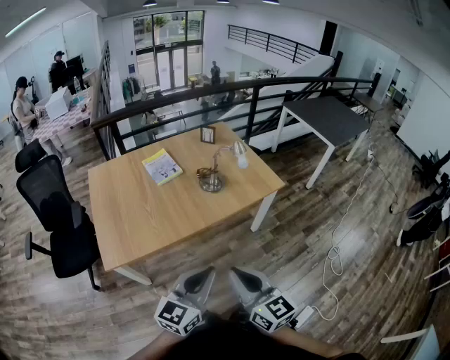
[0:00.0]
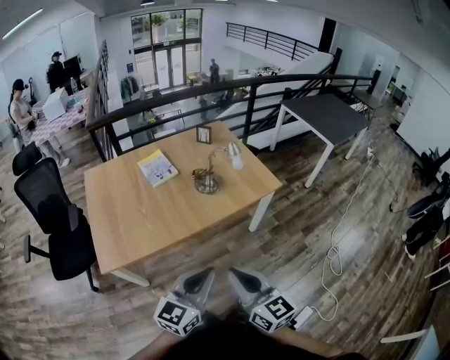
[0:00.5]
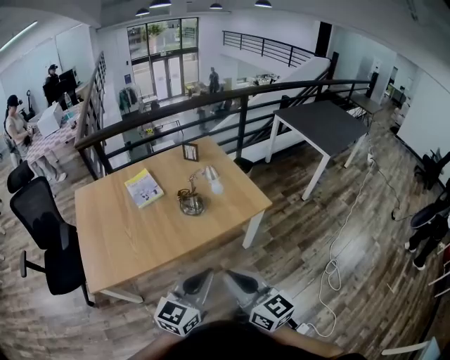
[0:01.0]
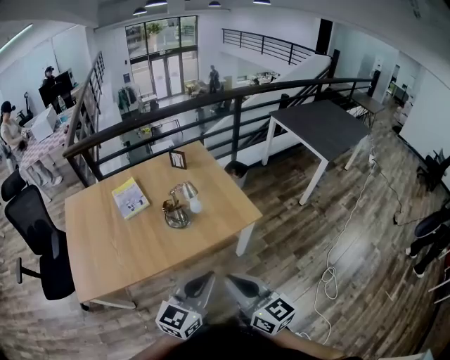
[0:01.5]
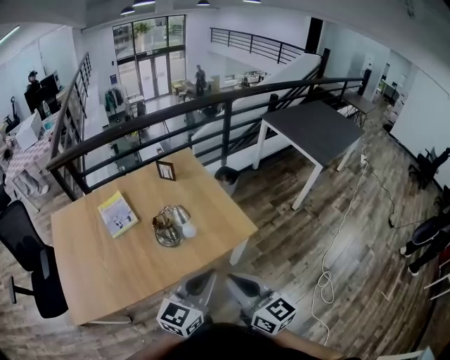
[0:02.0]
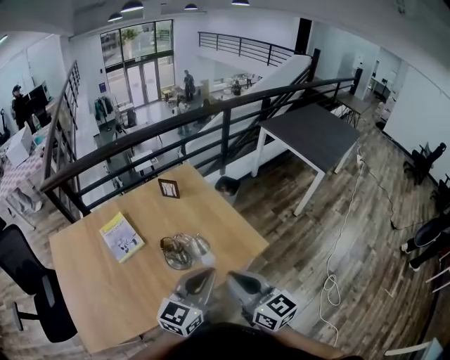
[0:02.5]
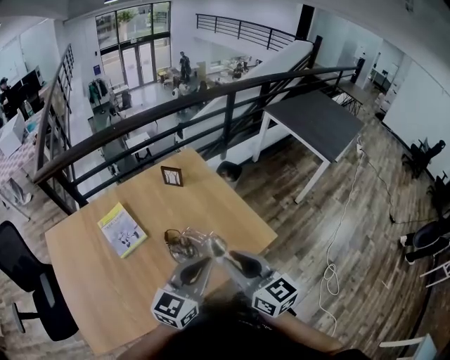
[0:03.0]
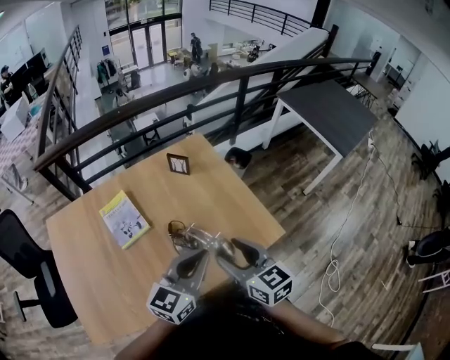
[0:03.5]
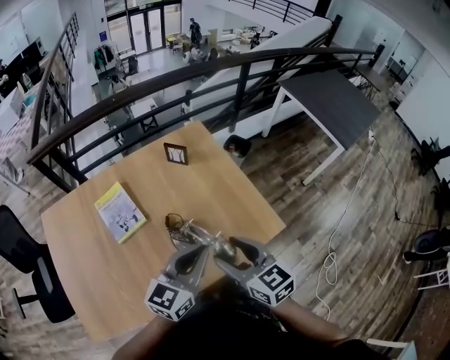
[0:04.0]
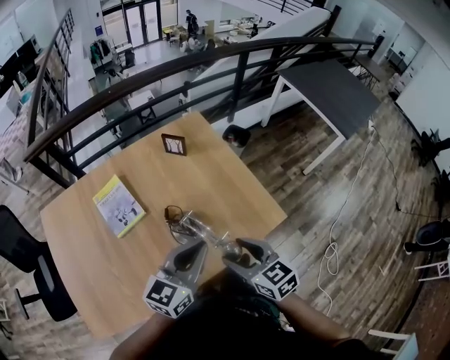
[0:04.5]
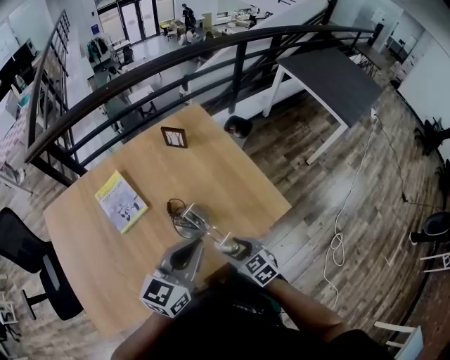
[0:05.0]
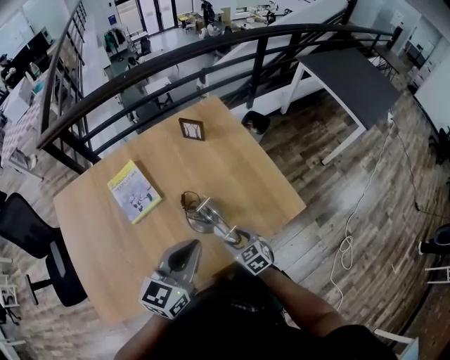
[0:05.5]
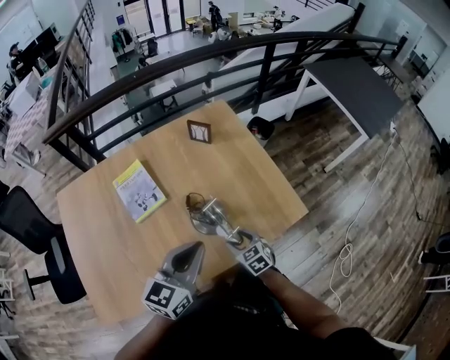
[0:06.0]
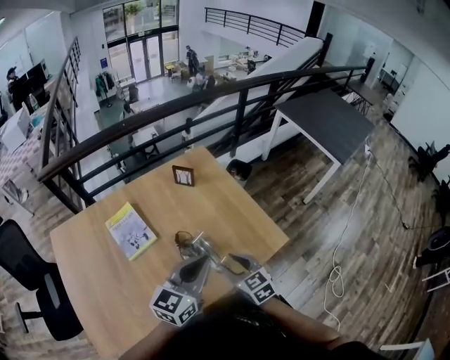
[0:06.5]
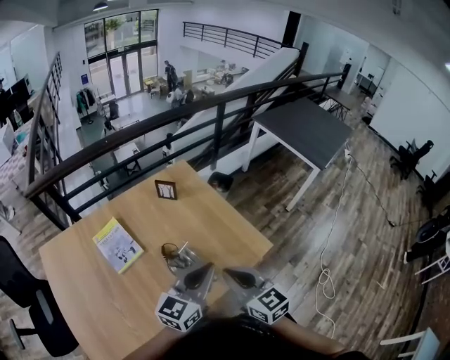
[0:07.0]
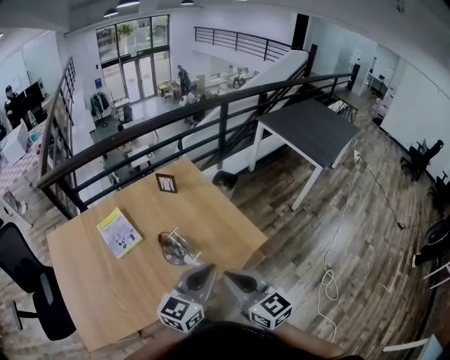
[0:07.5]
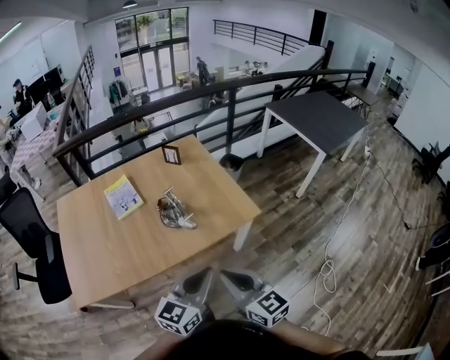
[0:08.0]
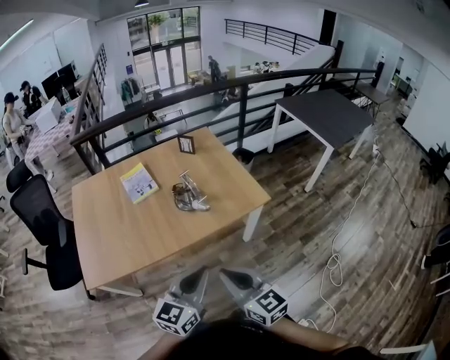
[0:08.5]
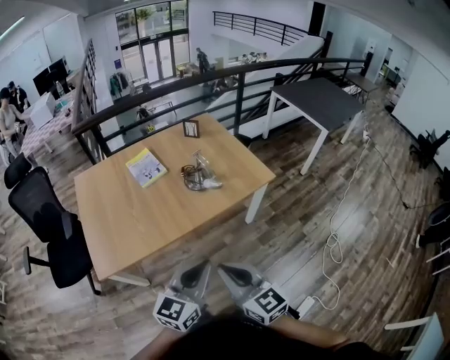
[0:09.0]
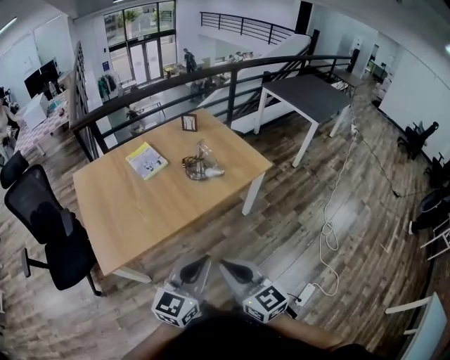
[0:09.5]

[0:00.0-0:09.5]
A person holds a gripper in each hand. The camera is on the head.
0:00.0 to 0:02.0: Both grippers move forward and to the right, about 35 cm.
0:02.0 to 0:04.0: Both grippers move forward and to the left, roughly 25 cm. The right gripper changes its angle by some 20 degrees, and opens up.
0:04.0 to 0:05.5: The left gripper shifts roughly 5 cm to the left; the right gripper is displaced downward by about 30 cm, and changes its angle by about 20 degrees.
0:05.5 to 0:07.5: The right gripper heads upward, covering some 30 cm, points its fingers some 40 degrees further upward, and closes its fingers. Meanwhile the left gripper heads to the right and backward, covering some 15 cm.
0:07.5 to 0:09.5: Both grippers are carried backward and to the left, roughly 40 cm.

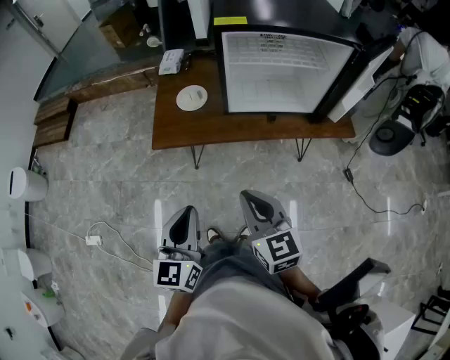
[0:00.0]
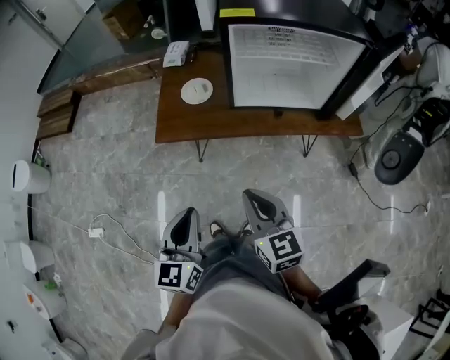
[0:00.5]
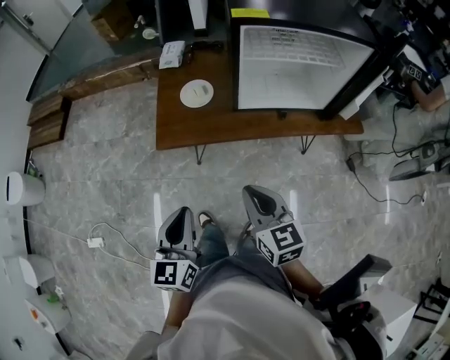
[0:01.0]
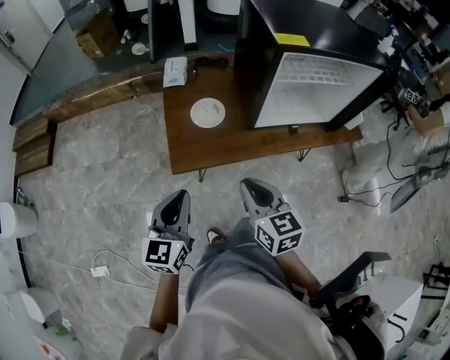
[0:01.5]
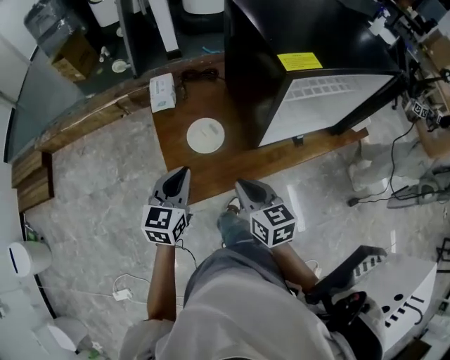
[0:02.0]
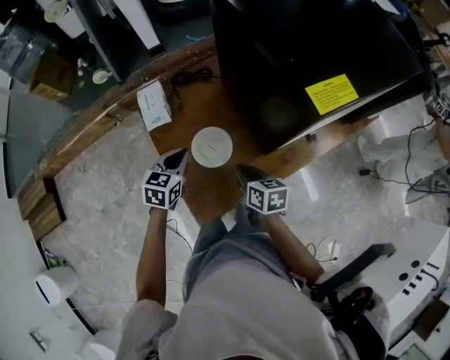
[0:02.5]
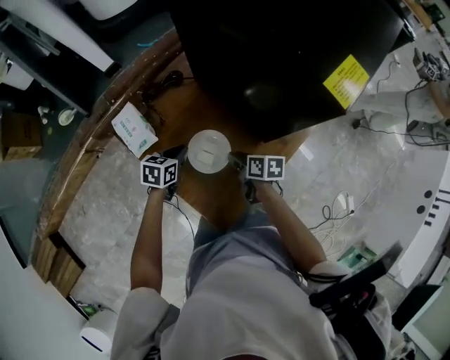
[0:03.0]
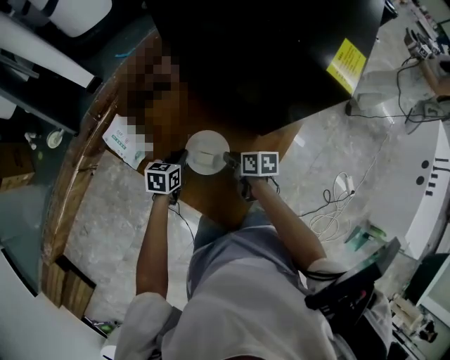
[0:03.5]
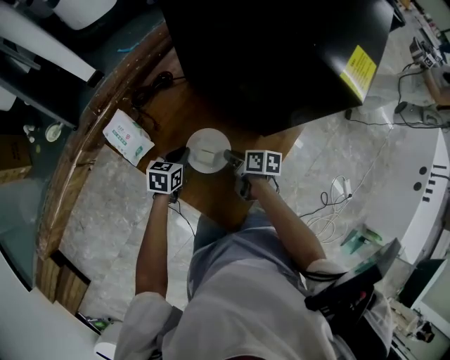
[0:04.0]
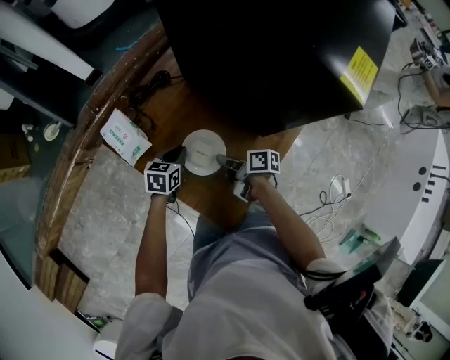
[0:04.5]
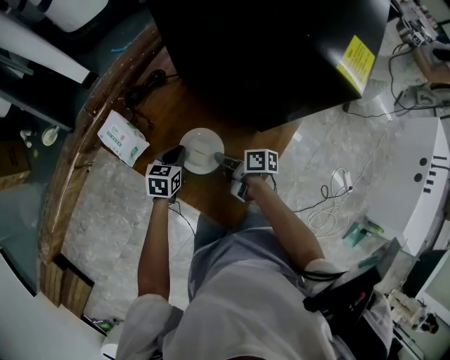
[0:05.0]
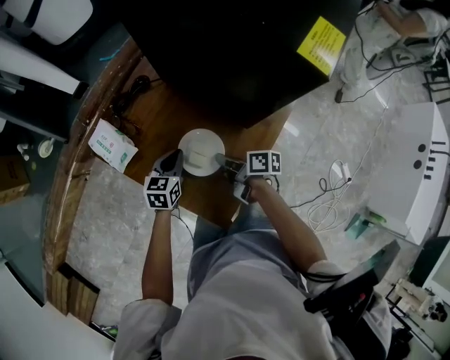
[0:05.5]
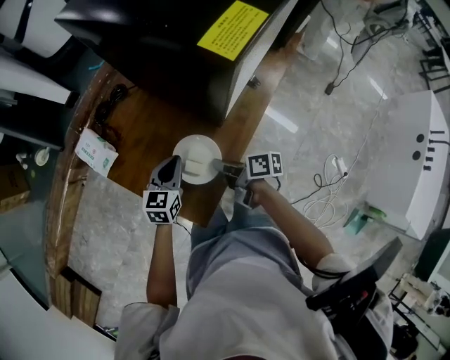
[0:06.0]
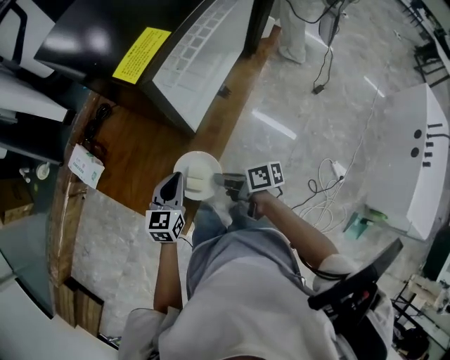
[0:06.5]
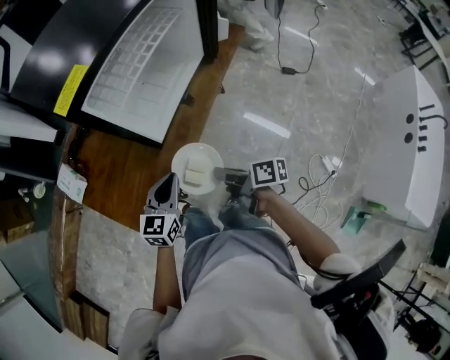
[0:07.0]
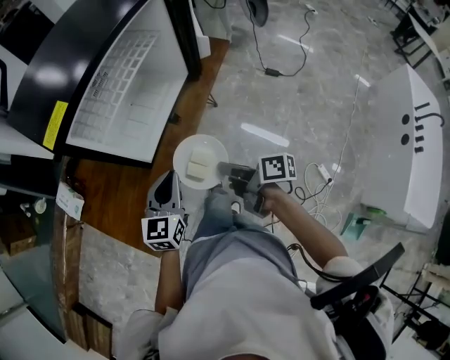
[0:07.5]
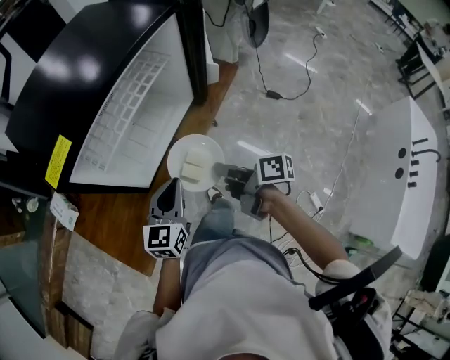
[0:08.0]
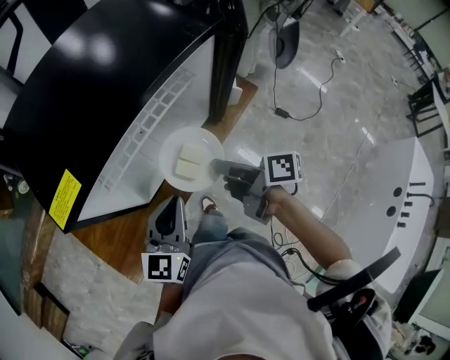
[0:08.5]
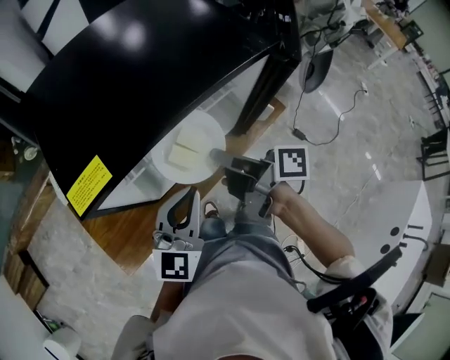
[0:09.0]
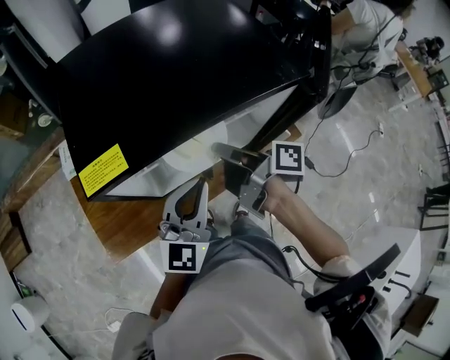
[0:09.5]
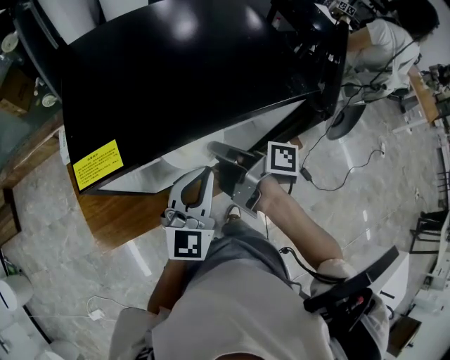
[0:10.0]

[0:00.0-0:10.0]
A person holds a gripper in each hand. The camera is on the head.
0:00.0 to 0:02.0: Both grippers are carried forward and to the left, about 70 cm. The left gripper turns by some 30 degrees; the right gripper swivels roughly 20 degrees.
0:02.0 to 0:04.0: The pair of grippers is taken roughly 50 cm. The left gripper swivels about 50 degrees; the right gripper twists roughly 60 degrees clockwise, seen from behind.
0:04.0 to 0:06.0: The grippers both shift to the right and backward by some 25 cm. The right gripper changes its angle by some 20 degrees.
0:06.0 to 0:08.0: The pair of grippers is taken to the right, about 60 cm.
0:08.0 to 0:10.0: The right gripper ends up roughly 40 cm from where it was, and turns by some 30 degrees, while the left gripper ends up some 35 cm from where it was, and swivels some 40 degrees.

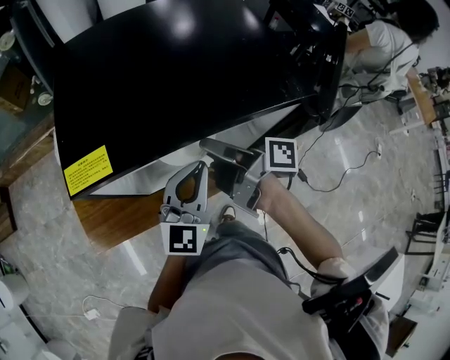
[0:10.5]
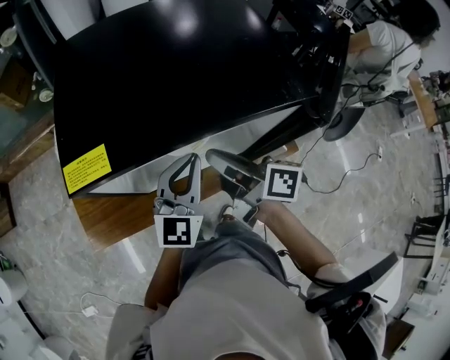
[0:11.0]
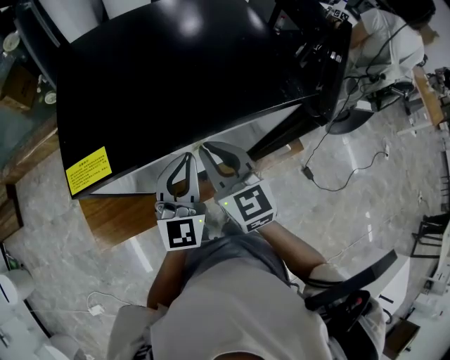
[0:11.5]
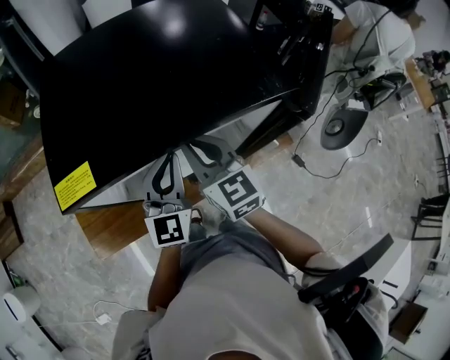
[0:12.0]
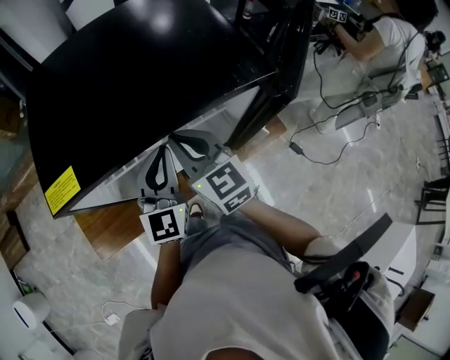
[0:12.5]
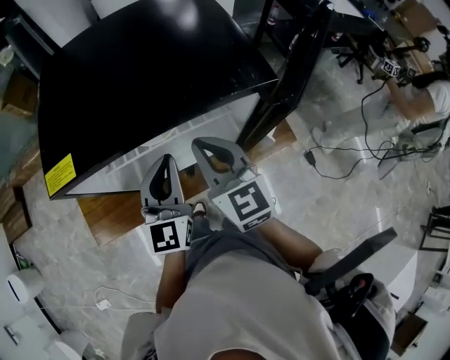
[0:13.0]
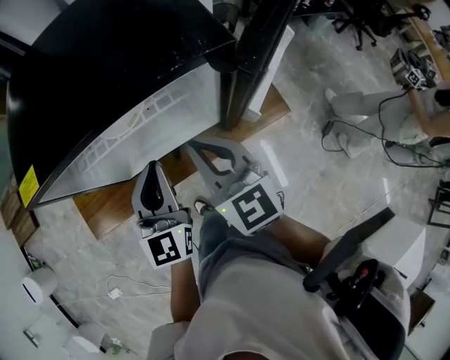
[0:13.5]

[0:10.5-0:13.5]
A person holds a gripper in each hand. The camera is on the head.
0:10.5 to 0:12.0: The right gripper twists approximately 80 degrees counterclockwise, seen from behind, and closes its fingers. Meanwhile the left gripper heads forward, covering roughly 5 cm.
0:12.0 to 0:13.5: The right gripper goes about 15 cm to the right and backward; the left gripper moves backward and to the right, roughly 10 cm.

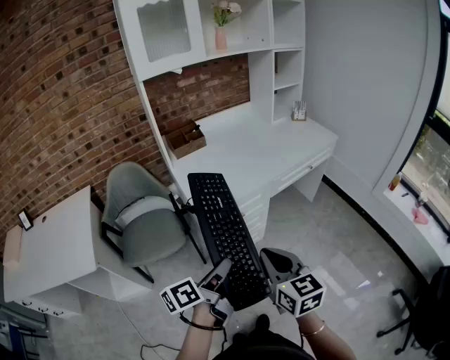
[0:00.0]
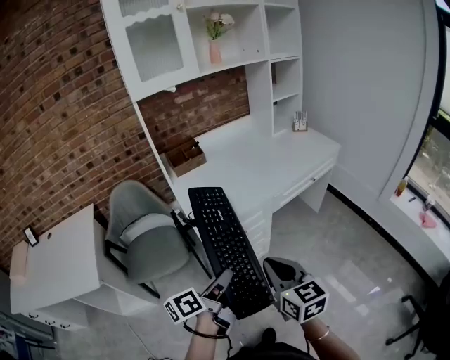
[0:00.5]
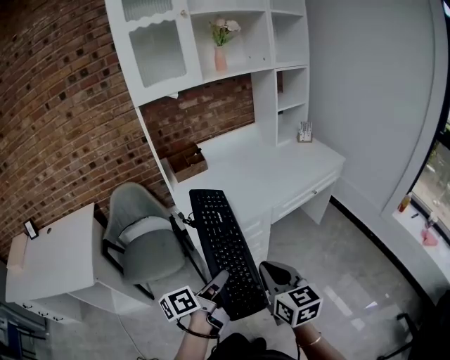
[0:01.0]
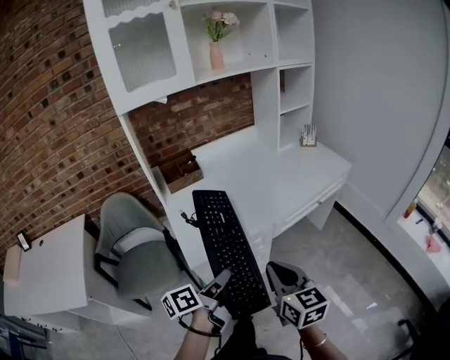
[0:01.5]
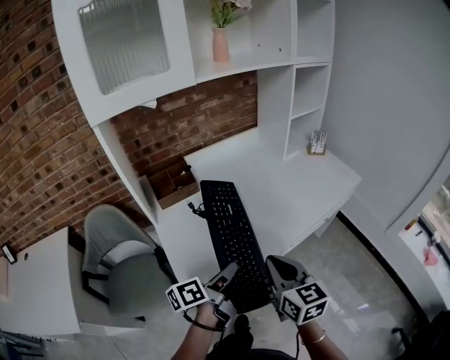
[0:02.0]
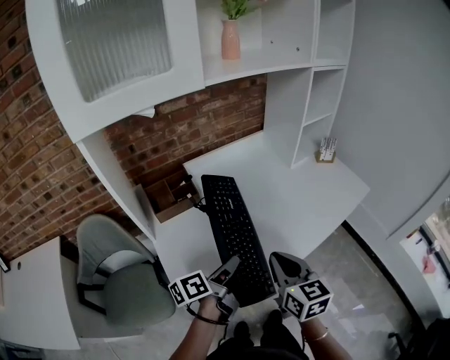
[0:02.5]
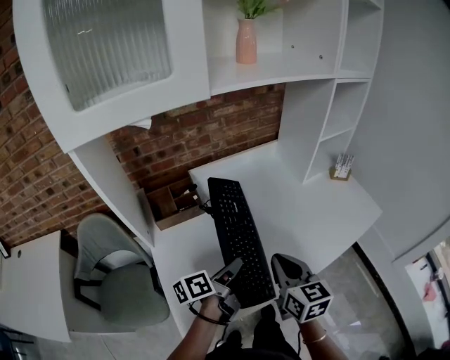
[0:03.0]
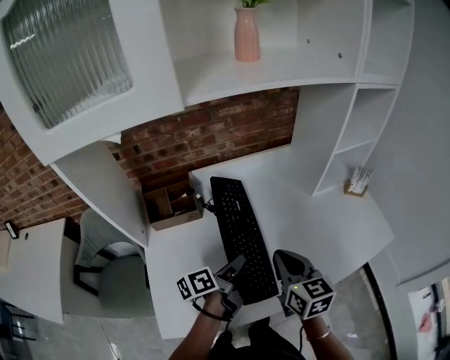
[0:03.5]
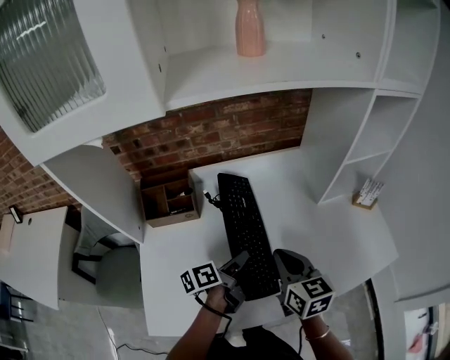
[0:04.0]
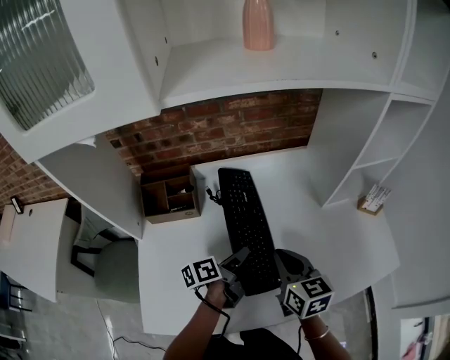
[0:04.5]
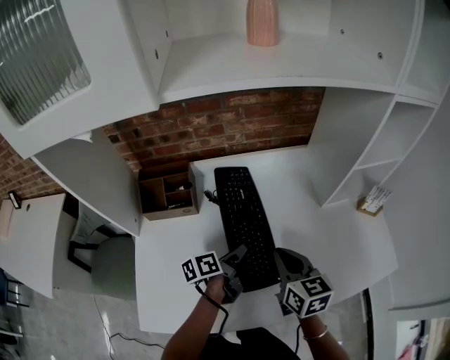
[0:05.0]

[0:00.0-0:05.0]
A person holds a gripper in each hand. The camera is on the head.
0:00.0 to 0:02.5: The two grippers travel together, forward, roughly 50 cm.
0:02.5 to 0:05.0: The right gripper goes about 25 cm forward, and swivels some 20 degrees. The left gripper heads forward and downward, covering some 25 cm.
